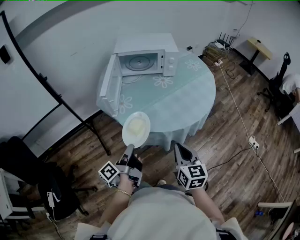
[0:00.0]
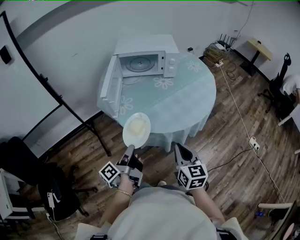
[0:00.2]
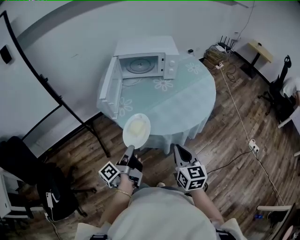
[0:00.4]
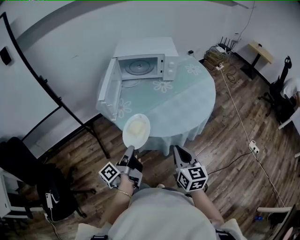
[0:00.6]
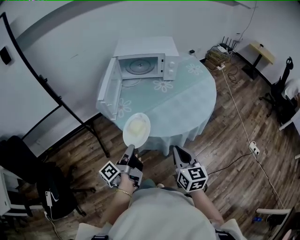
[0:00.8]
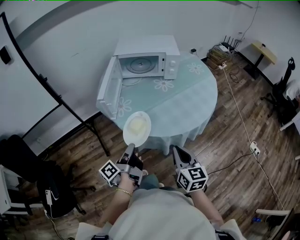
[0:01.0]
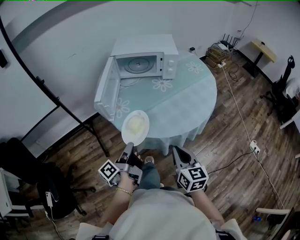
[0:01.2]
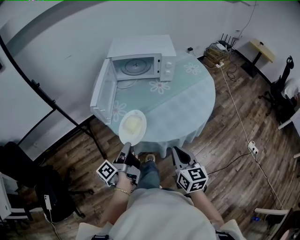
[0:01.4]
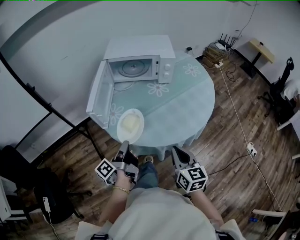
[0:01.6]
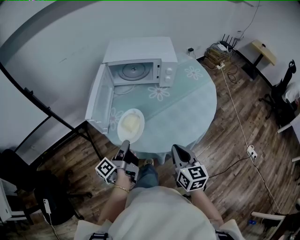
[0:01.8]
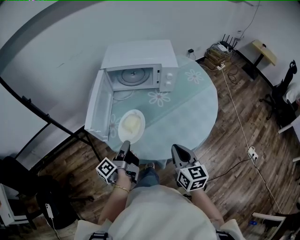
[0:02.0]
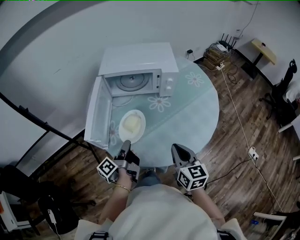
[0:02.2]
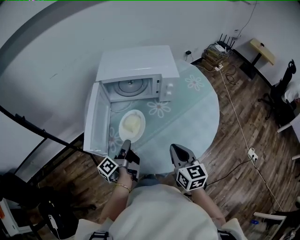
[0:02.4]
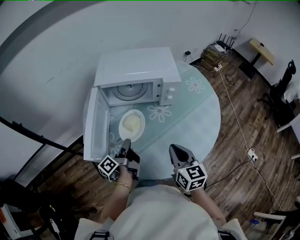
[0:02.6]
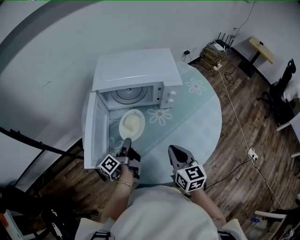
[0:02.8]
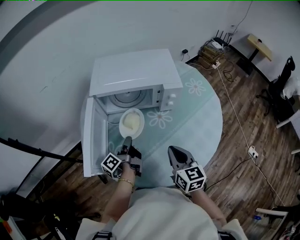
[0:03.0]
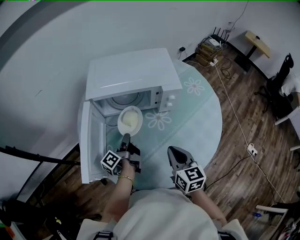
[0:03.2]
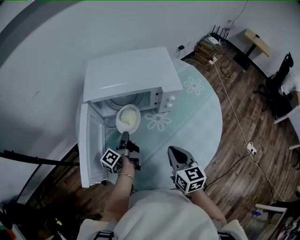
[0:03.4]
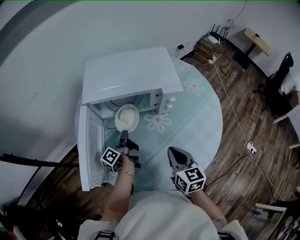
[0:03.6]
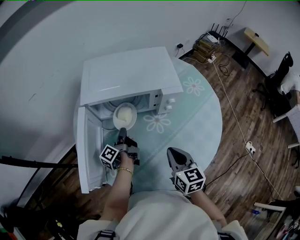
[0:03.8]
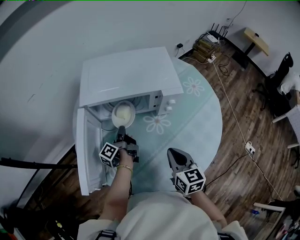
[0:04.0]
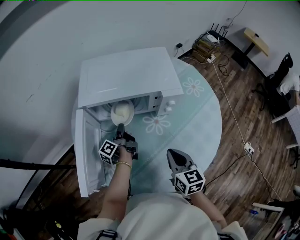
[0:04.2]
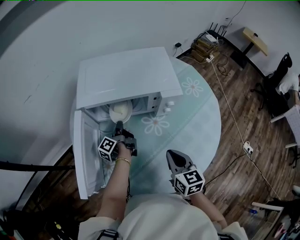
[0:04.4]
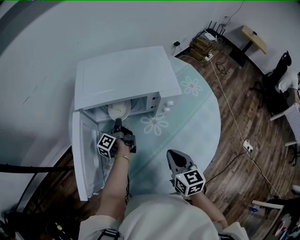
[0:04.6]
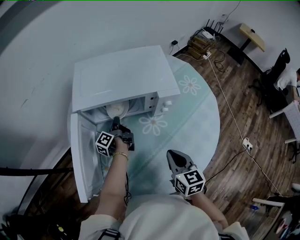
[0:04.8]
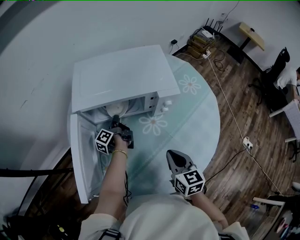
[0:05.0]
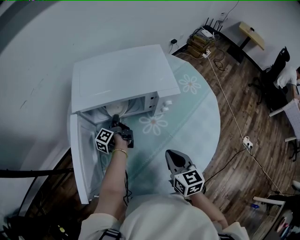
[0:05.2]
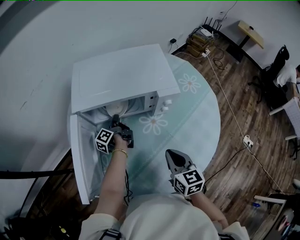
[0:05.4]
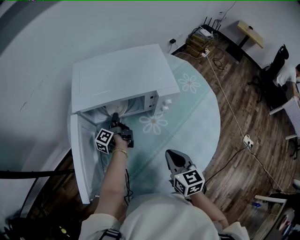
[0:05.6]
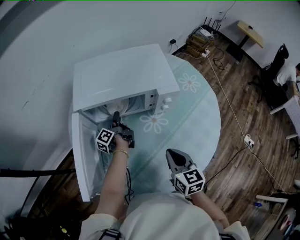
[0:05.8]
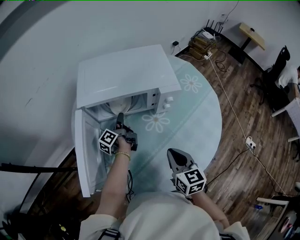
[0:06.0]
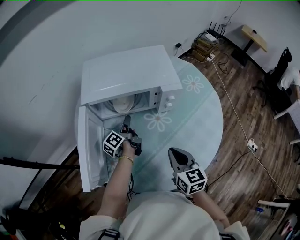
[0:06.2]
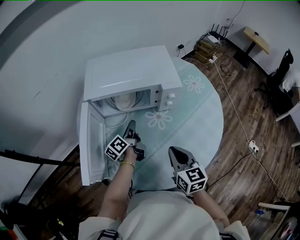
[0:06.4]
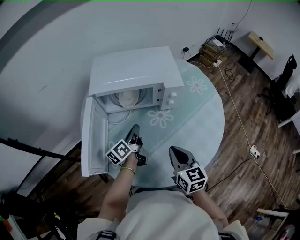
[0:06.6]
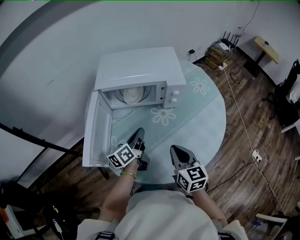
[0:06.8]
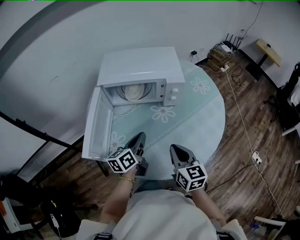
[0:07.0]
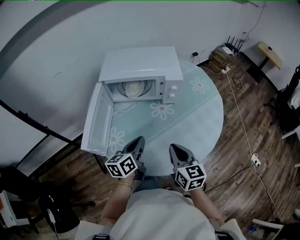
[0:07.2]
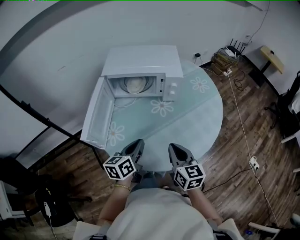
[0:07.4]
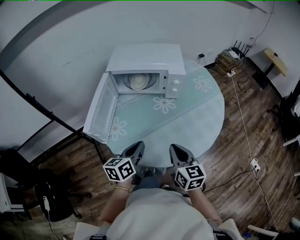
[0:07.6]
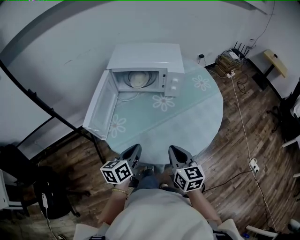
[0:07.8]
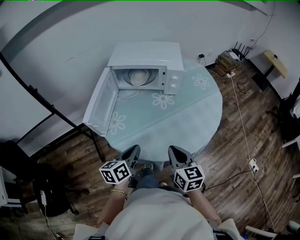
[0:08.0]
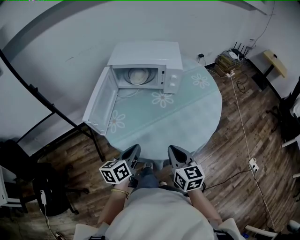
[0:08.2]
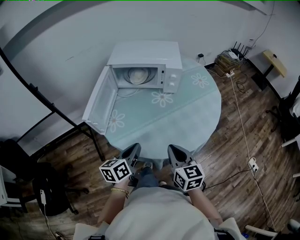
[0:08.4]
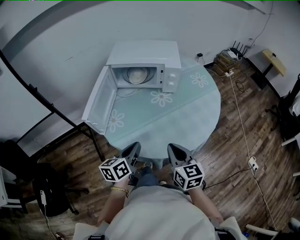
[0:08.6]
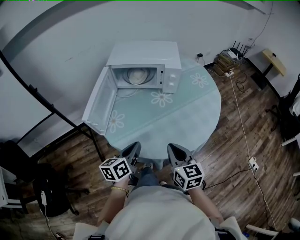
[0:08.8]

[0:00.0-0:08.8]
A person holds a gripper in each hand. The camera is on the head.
0:00.0 to 0:01.4: The right gripper moves roughly 5 cm.
0:01.4 to 0:03.0: The right gripper shifts by approximately 30 cm.
0:03.0 to 0:04.4: The right gripper moves approximately 5 cm.
0:05.8 to 0:07.4: The right gripper changes place by about 15 cm.
0:07.4 to 0:08.8: The right gripper changes place by some 10 cm.

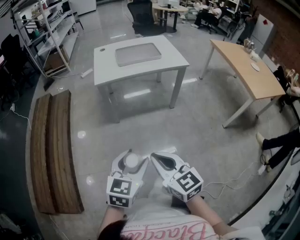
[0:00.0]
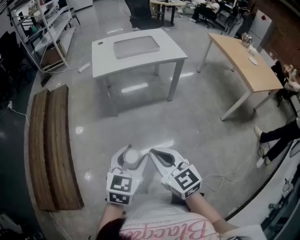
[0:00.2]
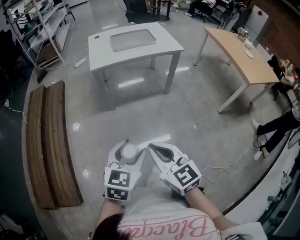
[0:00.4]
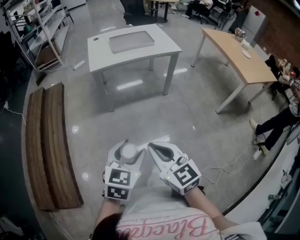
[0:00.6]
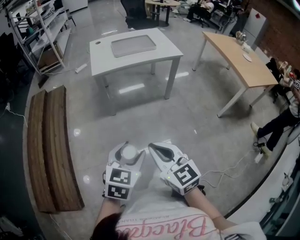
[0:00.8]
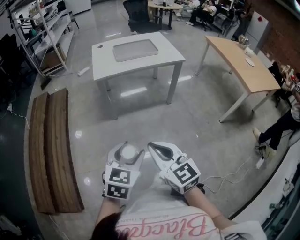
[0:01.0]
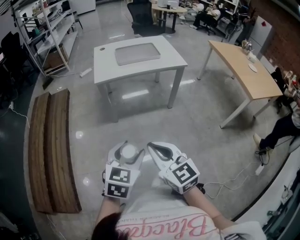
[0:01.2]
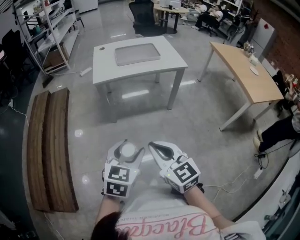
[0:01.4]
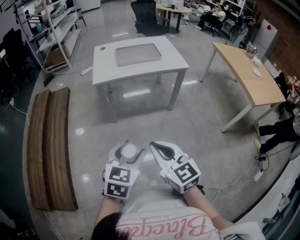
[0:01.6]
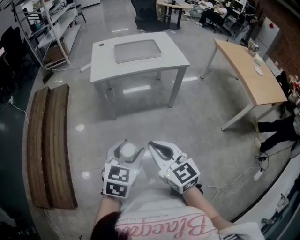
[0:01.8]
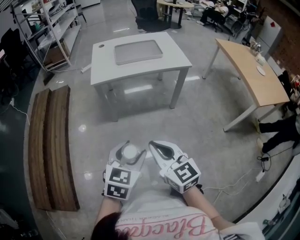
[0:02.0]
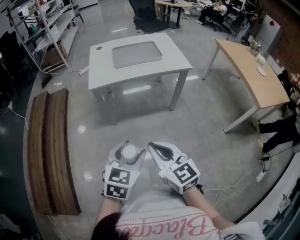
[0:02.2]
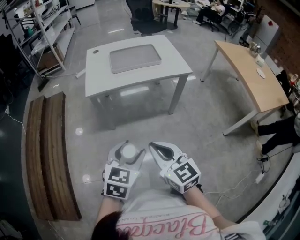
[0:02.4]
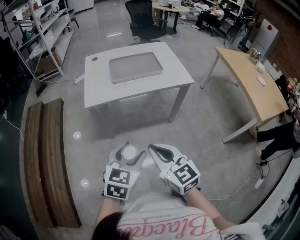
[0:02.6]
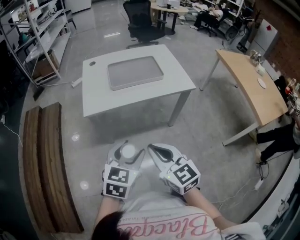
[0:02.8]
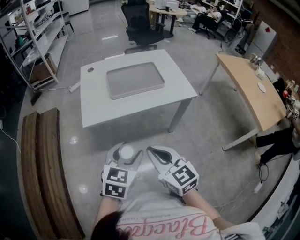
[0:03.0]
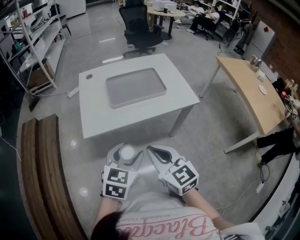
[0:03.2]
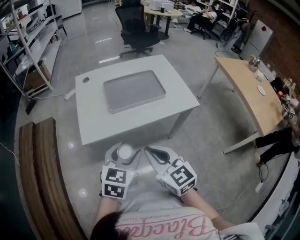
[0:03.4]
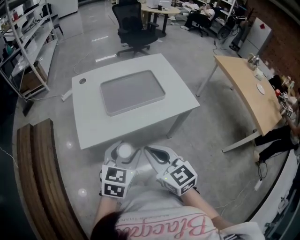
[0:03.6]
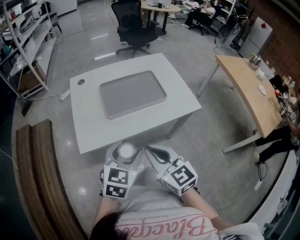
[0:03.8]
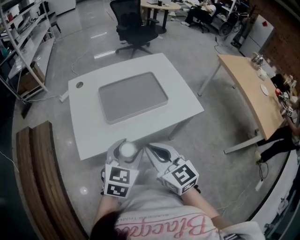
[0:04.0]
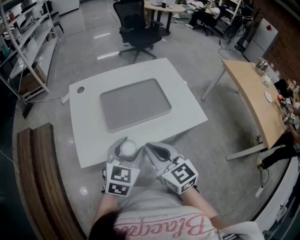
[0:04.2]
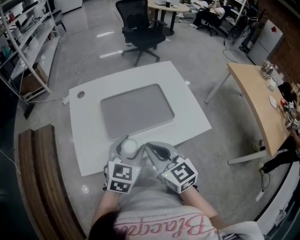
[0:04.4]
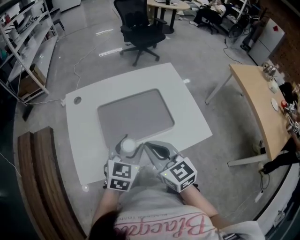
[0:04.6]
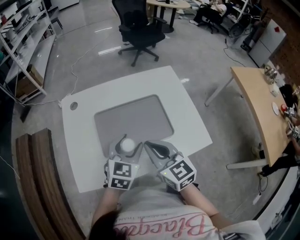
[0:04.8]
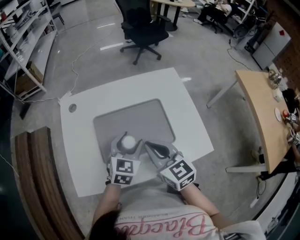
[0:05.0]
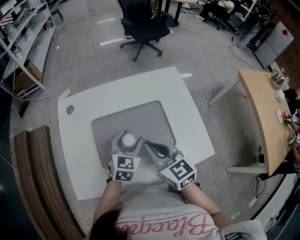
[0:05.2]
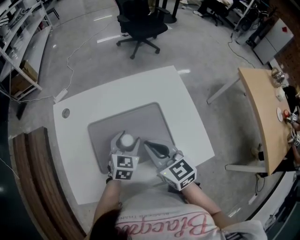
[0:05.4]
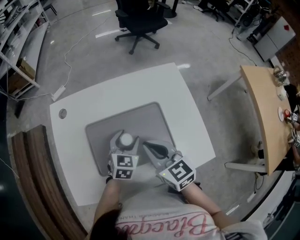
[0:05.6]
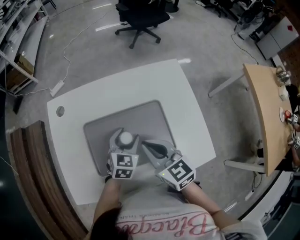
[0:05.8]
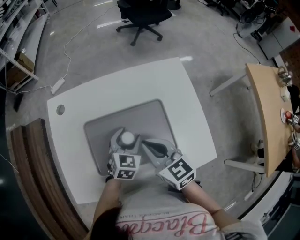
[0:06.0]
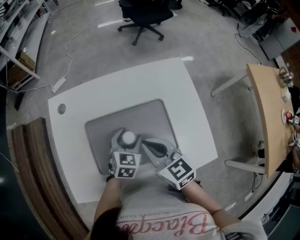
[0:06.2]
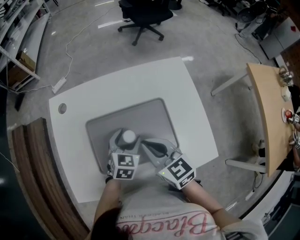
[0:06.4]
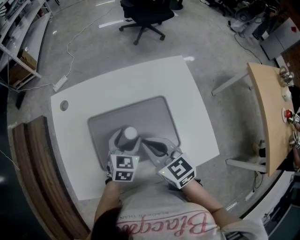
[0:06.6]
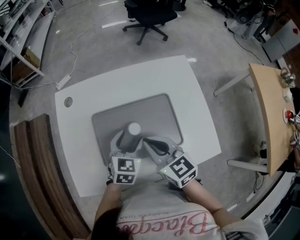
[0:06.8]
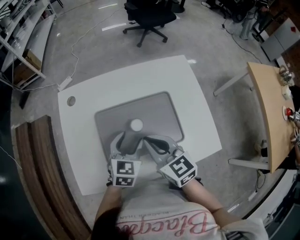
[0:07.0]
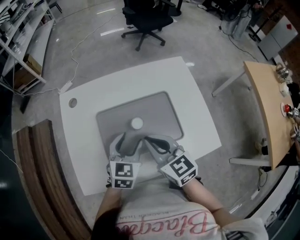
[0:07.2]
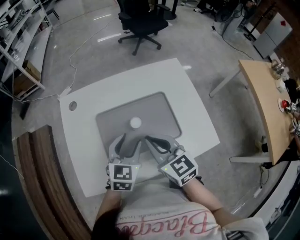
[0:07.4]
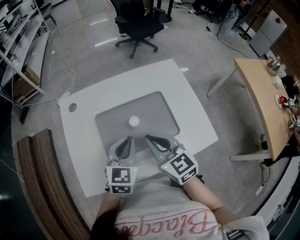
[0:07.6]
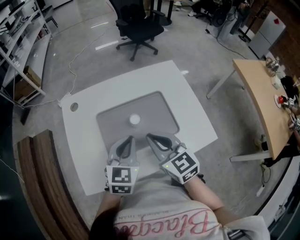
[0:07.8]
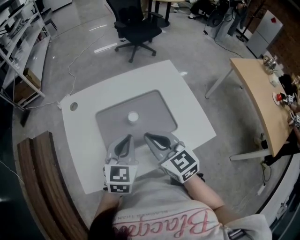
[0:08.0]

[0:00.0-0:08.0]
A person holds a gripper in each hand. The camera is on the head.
0:00.0 to 0:01.6: The right gripper heads forward, covering approximately 5 cm, while the left gripper changes place by about 5 cm.
0:01.6 to 0:03.2: Both grippers travel together forward, approximately 25 cm.
0:03.2 to 0:04.8: The two grippers go roughly 25 cm forward.
0:04.8 to 0:06.4: The left gripper heads downward and forward, covering approximately 10 cm. Meanwhile the right gripper shifts about 5 cm forward.
0:06.4 to 0:08.0: The right gripper moves upward, some 5 cm; the left gripper goes about 15 cm upward and backward, and closes.

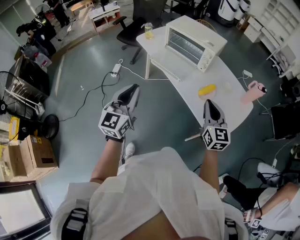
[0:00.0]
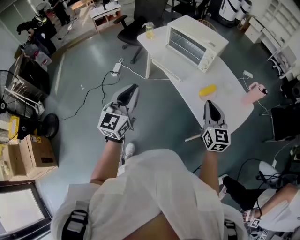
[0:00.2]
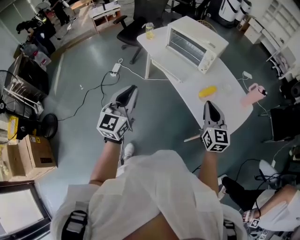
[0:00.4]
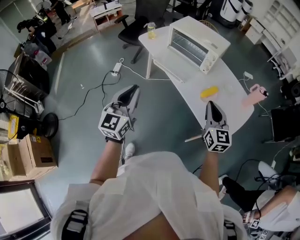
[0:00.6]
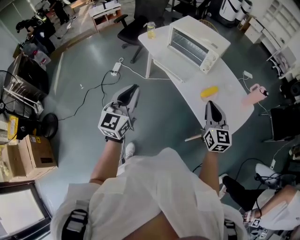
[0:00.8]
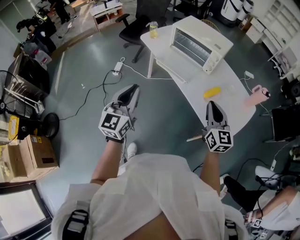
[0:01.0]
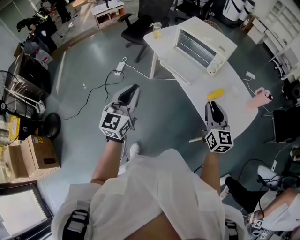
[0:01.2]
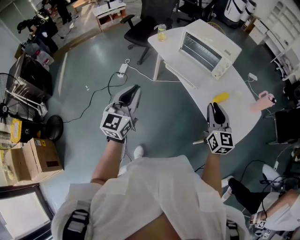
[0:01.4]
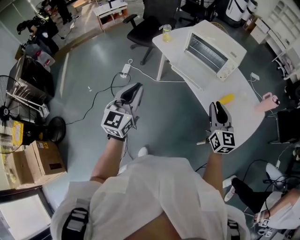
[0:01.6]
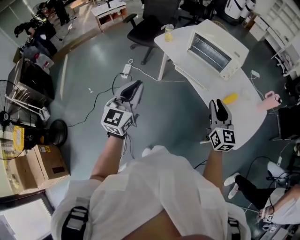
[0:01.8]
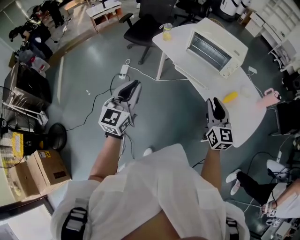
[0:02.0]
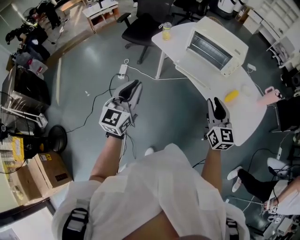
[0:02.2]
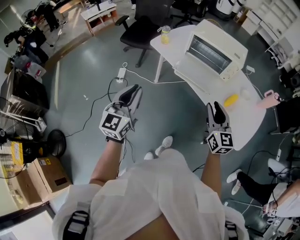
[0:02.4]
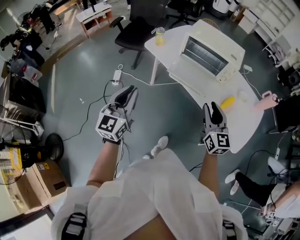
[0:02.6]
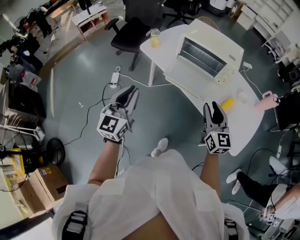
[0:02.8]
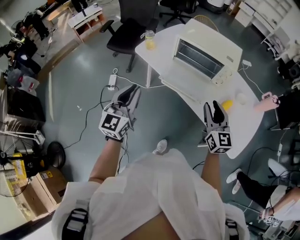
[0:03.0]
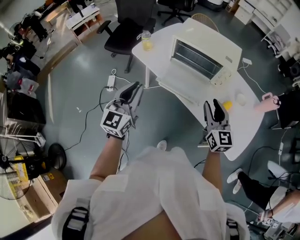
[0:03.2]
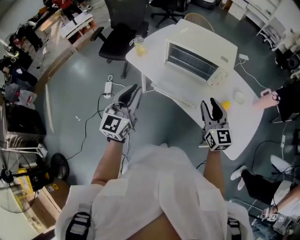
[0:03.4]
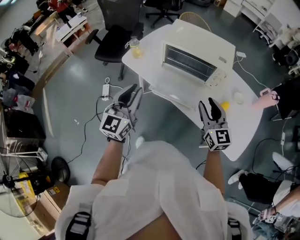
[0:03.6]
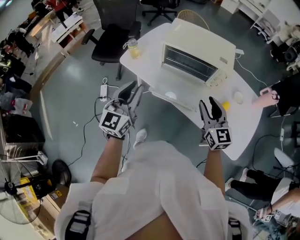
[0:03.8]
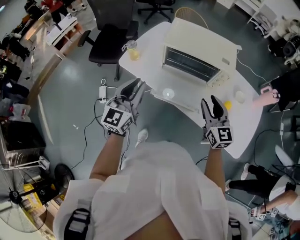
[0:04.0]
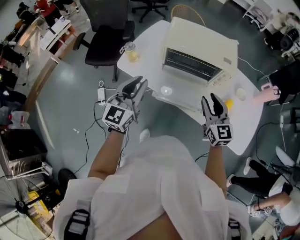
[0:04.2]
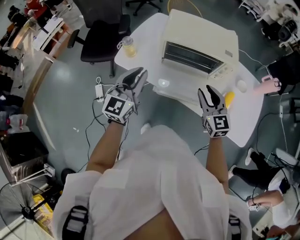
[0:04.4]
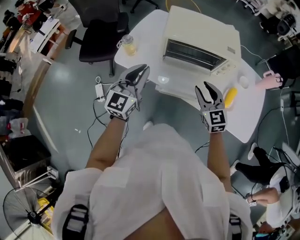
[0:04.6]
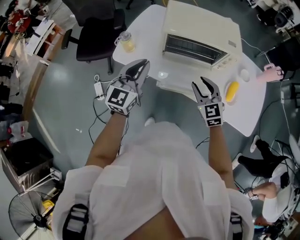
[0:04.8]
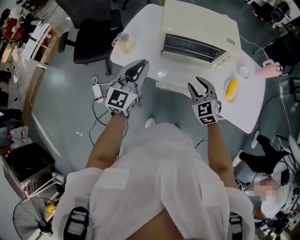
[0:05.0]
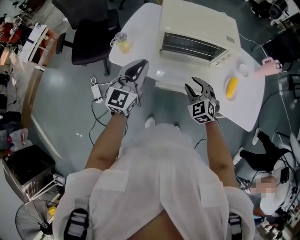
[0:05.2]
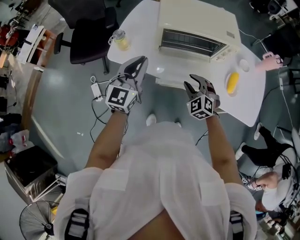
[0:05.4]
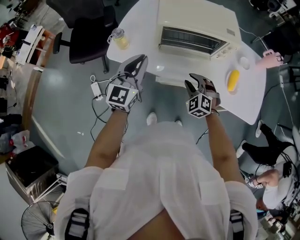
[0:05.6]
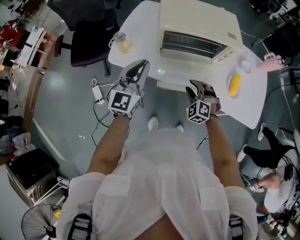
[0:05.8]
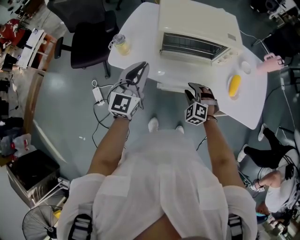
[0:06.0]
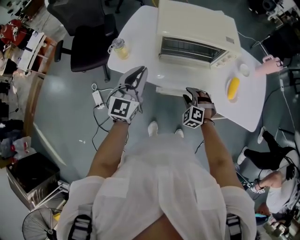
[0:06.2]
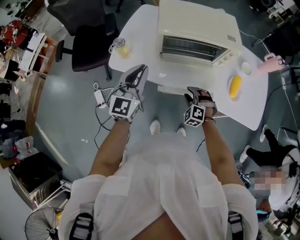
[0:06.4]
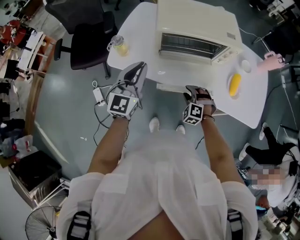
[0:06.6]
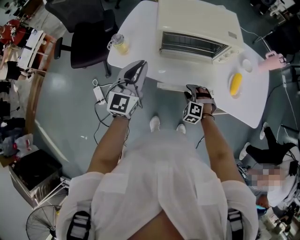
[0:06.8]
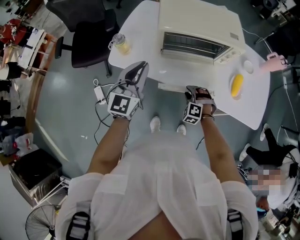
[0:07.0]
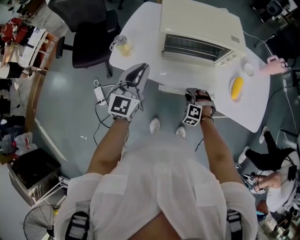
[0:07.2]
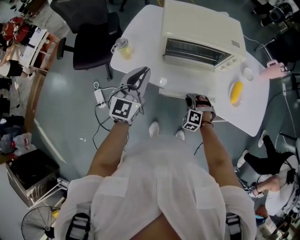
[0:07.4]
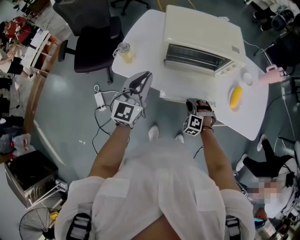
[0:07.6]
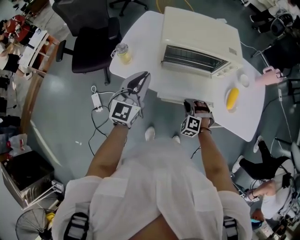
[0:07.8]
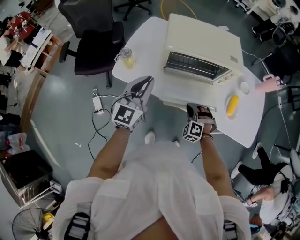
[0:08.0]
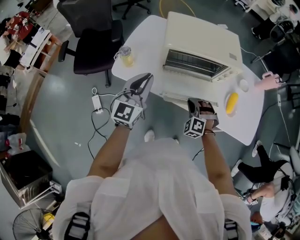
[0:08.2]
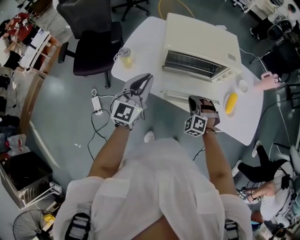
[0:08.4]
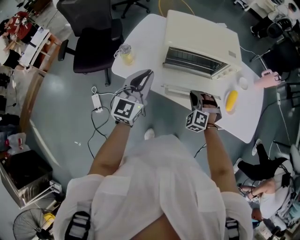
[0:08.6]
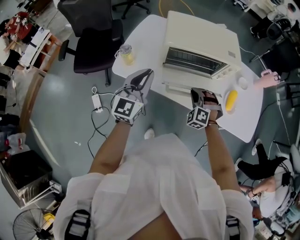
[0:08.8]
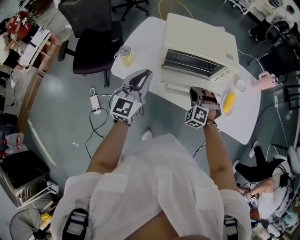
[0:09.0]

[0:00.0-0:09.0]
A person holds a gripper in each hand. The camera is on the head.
0:00.0 to 0:01.6: The grippers both shift to the left by about 15 cm.
0:01.6 to 0:03.0: The two grippers go roughly 15 cm forward.
0:03.0 to 0:04.4: The right gripper travels forward and to the left by some 20 cm. The left gripper moves forward, roughly 25 cm, and turns by some 20 degrees.
0:04.4 to 0:06.0: The right gripper travels downward by approximately 20 cm, and angles its fingers downward, by about 30 degrees; the left gripper moves downward, approximately 5 cm.
0:06.0 to 0:07.6: The right gripper heads downward, covering approximately 5 cm, and closes.
0:07.6 to 0:09.0: The right gripper goes some 15 cm upward and forward.
